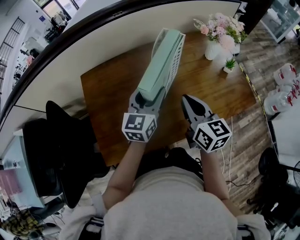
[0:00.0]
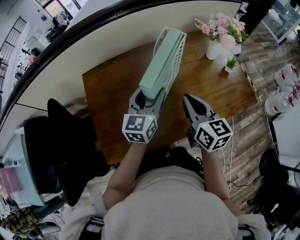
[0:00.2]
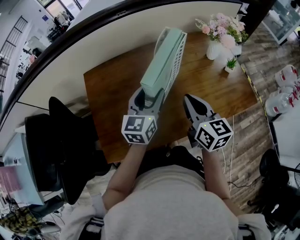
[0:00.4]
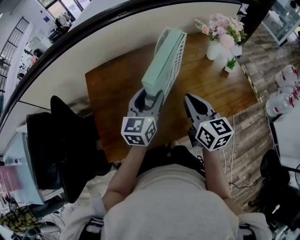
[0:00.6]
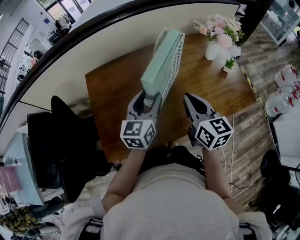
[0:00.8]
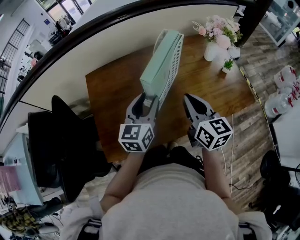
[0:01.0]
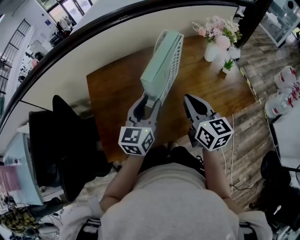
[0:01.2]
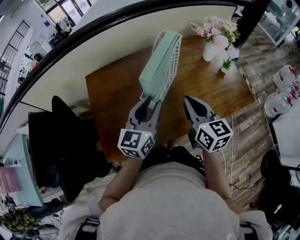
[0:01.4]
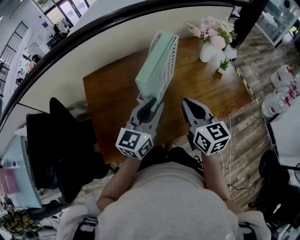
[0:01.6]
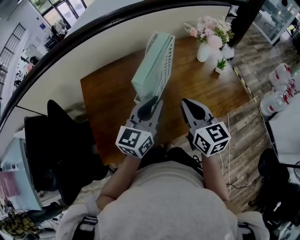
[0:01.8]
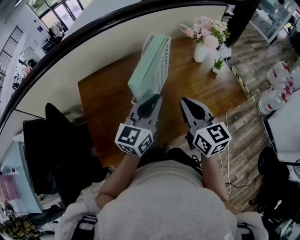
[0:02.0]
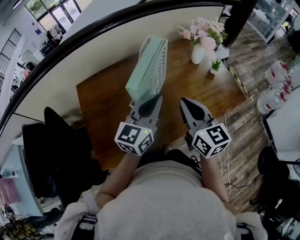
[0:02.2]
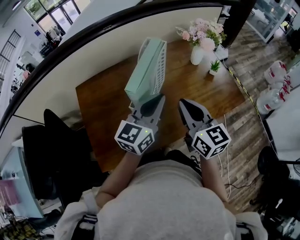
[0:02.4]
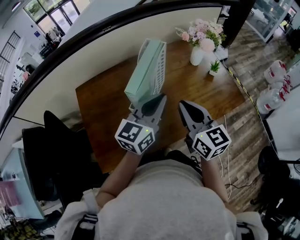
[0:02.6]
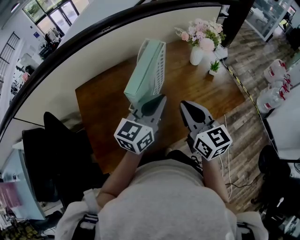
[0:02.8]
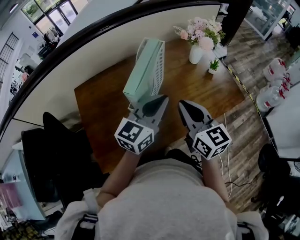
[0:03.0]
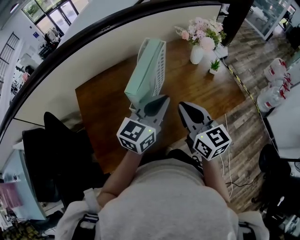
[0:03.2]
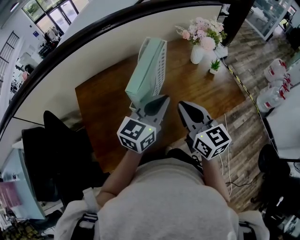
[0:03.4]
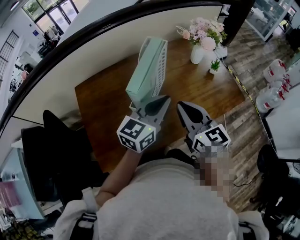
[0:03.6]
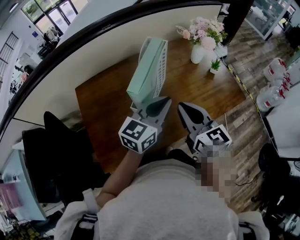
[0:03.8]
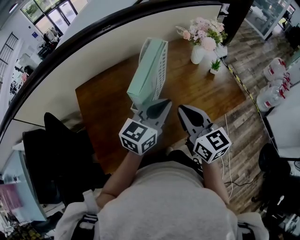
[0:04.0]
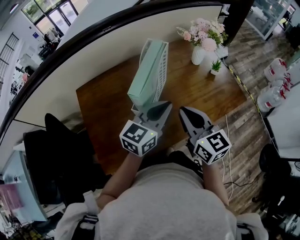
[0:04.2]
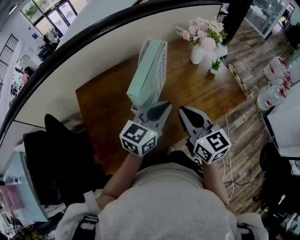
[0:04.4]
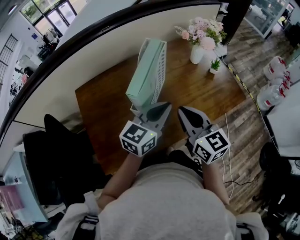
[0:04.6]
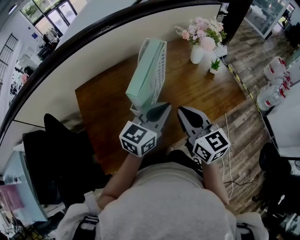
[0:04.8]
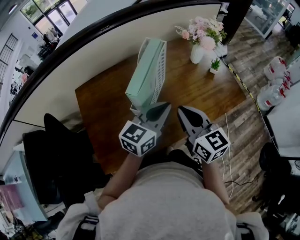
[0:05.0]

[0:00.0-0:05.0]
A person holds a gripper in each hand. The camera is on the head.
0:00.0 to 0:01.6: The right gripper changes place by roughly 5 cm. Meanwhile the left gripper is displaced backward by approximately 10 cm, and closes.
0:01.6 to 0:03.4: The left gripper shifts approximately 5 cm to the right, and closes its fingers.
0:03.4 to 0:05.0: The grippers move only a little.

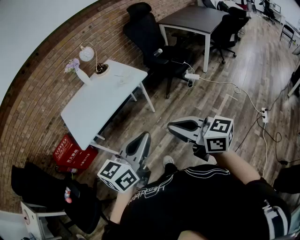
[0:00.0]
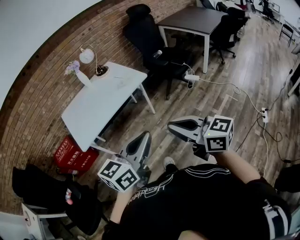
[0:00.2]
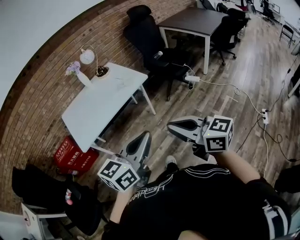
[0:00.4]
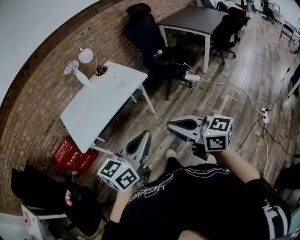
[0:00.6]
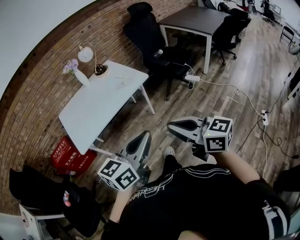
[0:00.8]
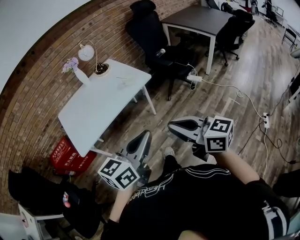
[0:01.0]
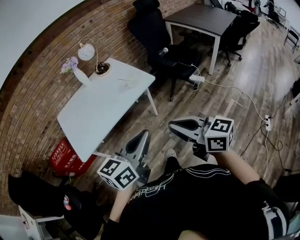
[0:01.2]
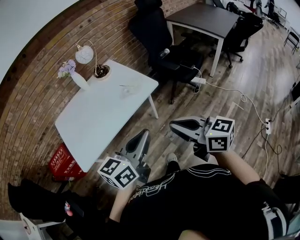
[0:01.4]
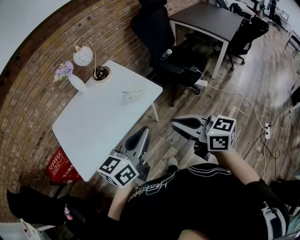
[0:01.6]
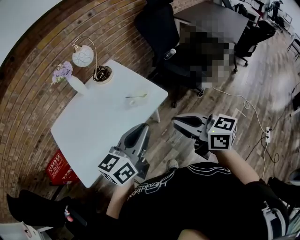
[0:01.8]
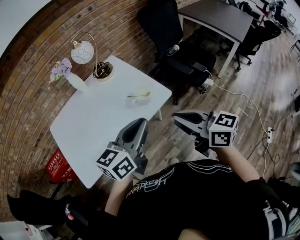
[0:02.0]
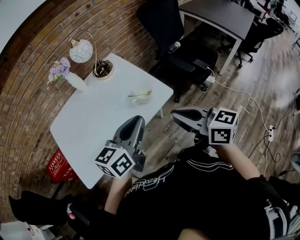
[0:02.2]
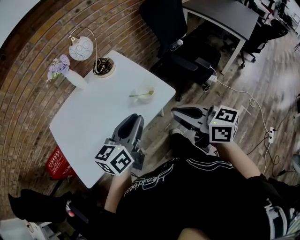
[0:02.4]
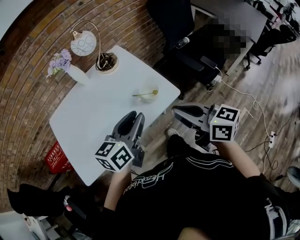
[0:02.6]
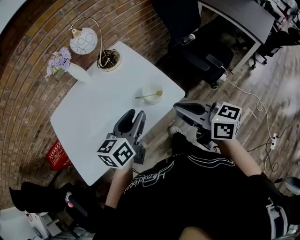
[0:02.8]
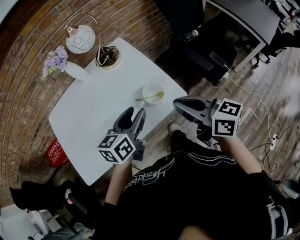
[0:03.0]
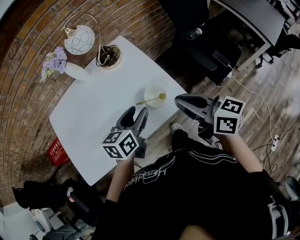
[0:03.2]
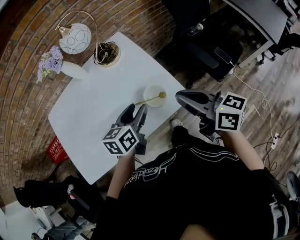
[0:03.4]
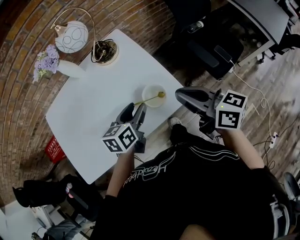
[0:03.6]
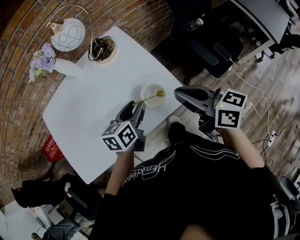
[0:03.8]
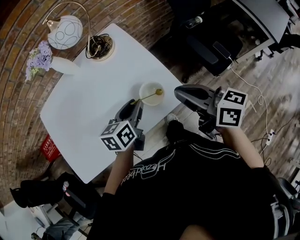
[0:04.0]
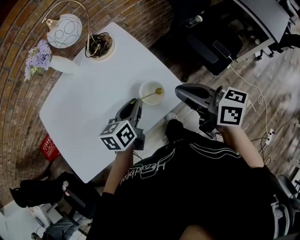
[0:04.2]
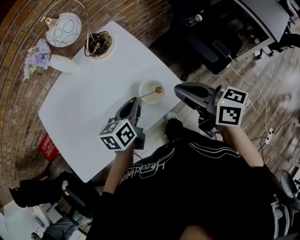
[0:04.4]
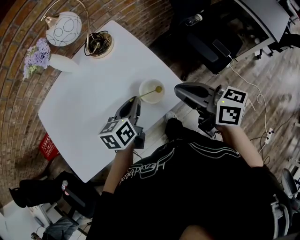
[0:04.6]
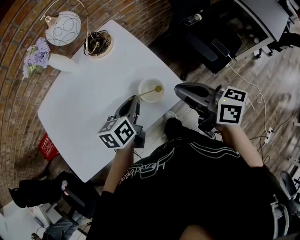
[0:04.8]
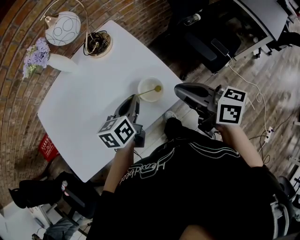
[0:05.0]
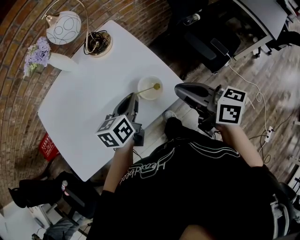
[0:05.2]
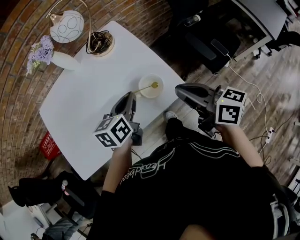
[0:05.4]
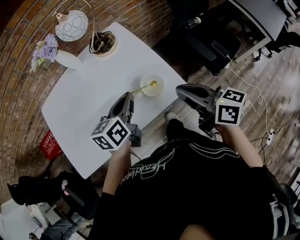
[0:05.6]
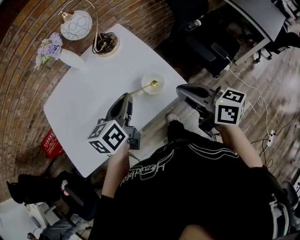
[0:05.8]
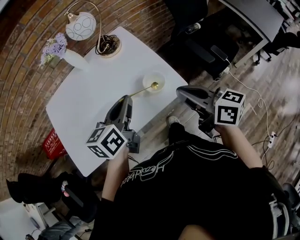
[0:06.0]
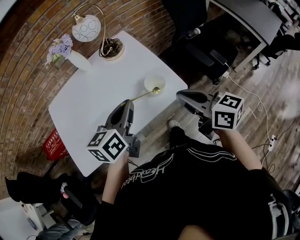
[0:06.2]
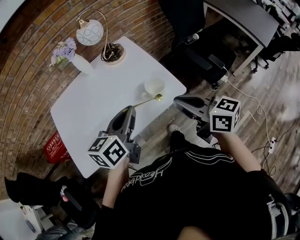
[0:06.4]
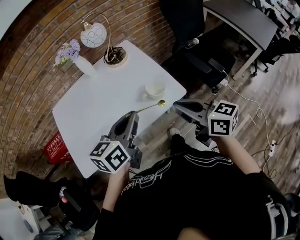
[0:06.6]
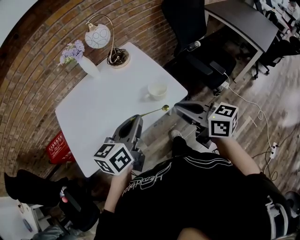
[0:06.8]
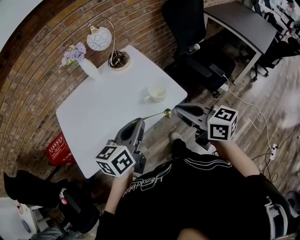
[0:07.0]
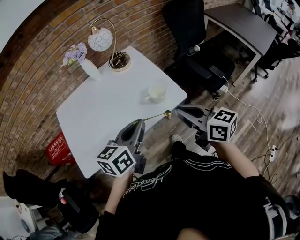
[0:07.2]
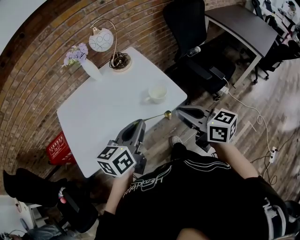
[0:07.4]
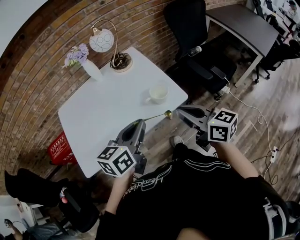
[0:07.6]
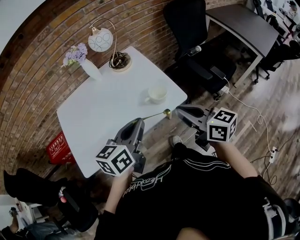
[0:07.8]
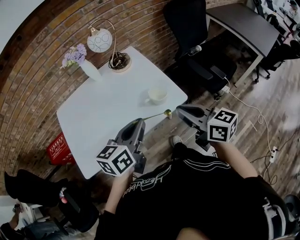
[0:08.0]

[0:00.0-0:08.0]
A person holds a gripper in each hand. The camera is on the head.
0:00.0 to 0:01.6: The two grippers go approximately 30 cm forward.
0:01.6 to 0:03.2: The left gripper travels forward and downward by approximately 35 cm, turns by roughly 30 degrees, and opens up; the right gripper goes some 30 cm forward.
0:03.2 to 0:04.8: The right gripper ends up some 5 cm from where it was. Meanwhile the left gripper travels downward by about 5 cm, and closes its fingers.
0:04.8 to 0:06.4: The left gripper shifts about 20 cm upward and backward, while the right gripper shifts some 10 cm backward.

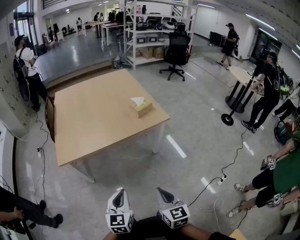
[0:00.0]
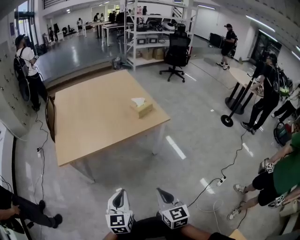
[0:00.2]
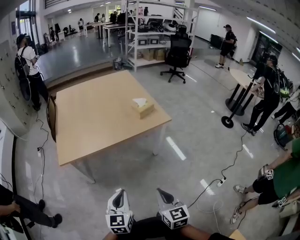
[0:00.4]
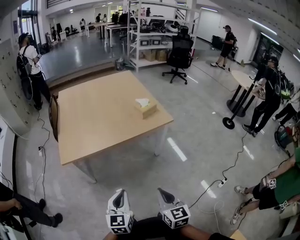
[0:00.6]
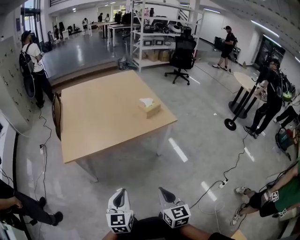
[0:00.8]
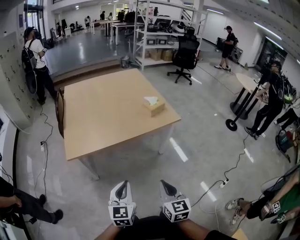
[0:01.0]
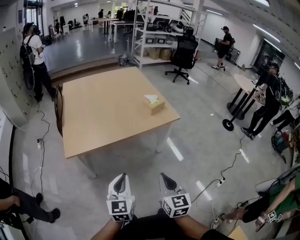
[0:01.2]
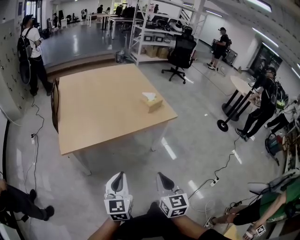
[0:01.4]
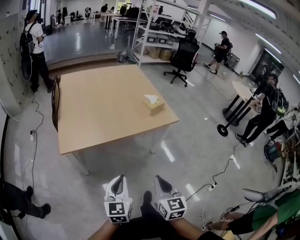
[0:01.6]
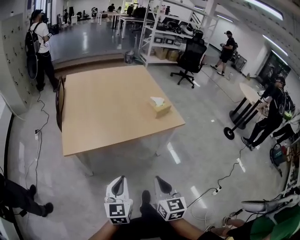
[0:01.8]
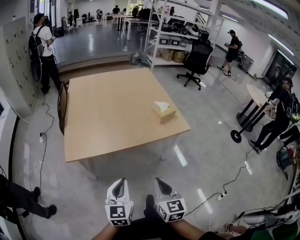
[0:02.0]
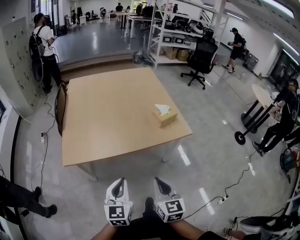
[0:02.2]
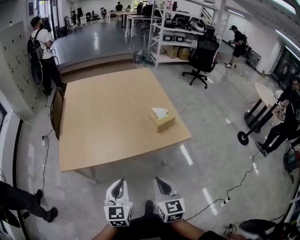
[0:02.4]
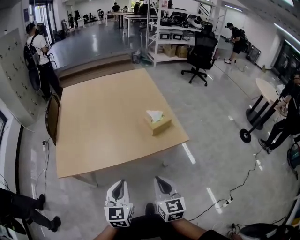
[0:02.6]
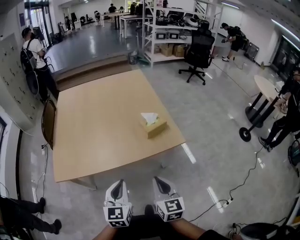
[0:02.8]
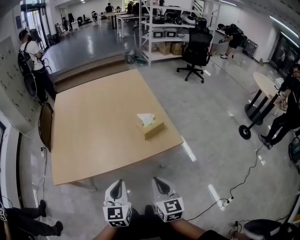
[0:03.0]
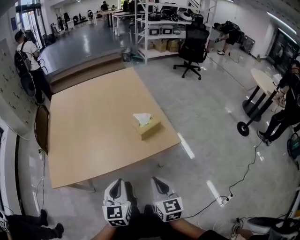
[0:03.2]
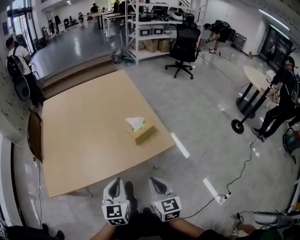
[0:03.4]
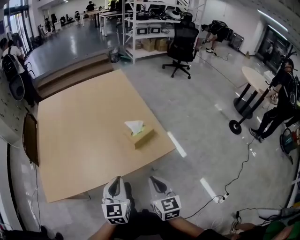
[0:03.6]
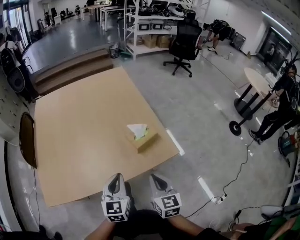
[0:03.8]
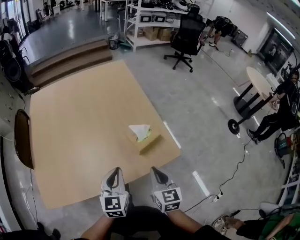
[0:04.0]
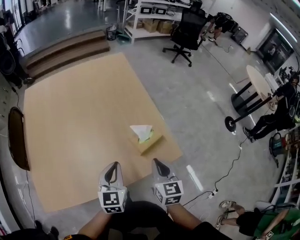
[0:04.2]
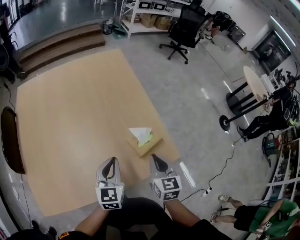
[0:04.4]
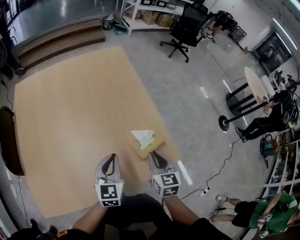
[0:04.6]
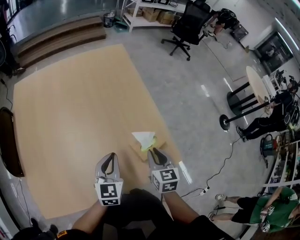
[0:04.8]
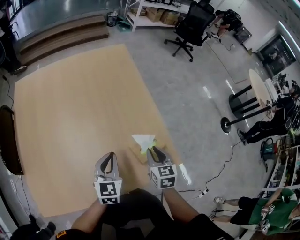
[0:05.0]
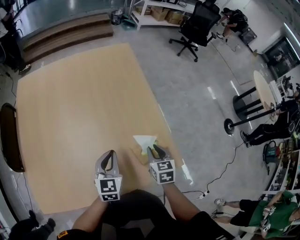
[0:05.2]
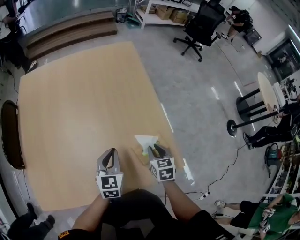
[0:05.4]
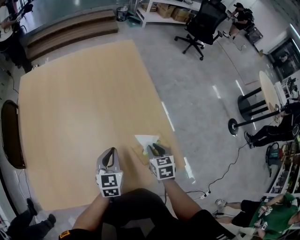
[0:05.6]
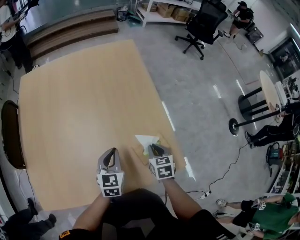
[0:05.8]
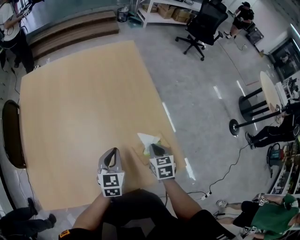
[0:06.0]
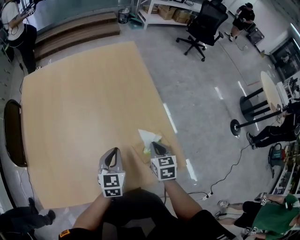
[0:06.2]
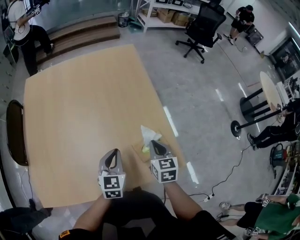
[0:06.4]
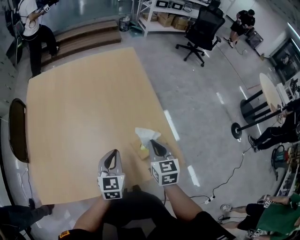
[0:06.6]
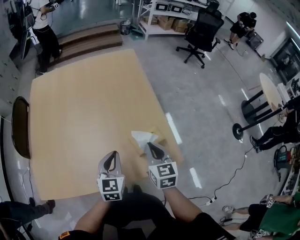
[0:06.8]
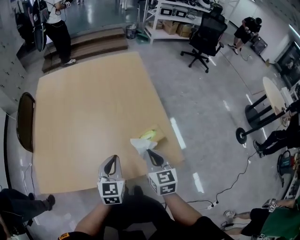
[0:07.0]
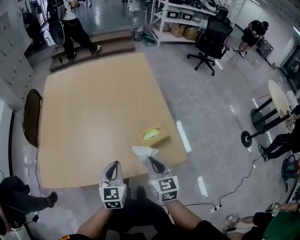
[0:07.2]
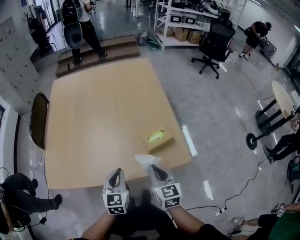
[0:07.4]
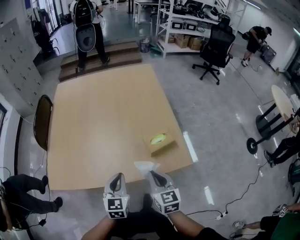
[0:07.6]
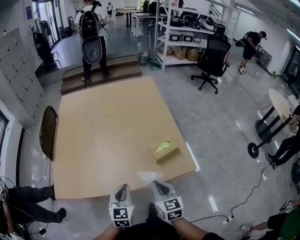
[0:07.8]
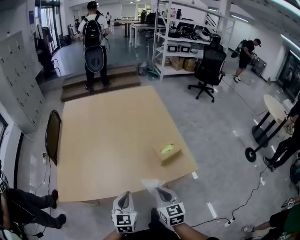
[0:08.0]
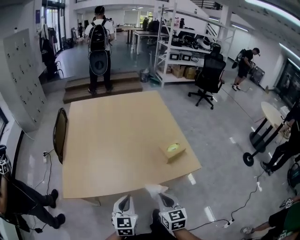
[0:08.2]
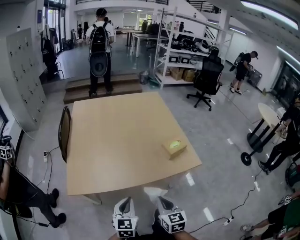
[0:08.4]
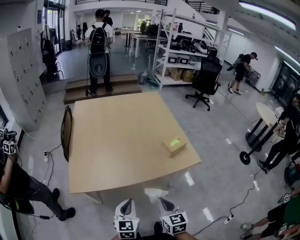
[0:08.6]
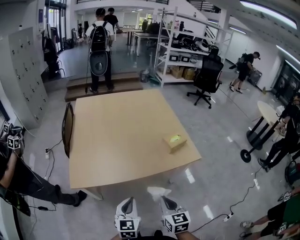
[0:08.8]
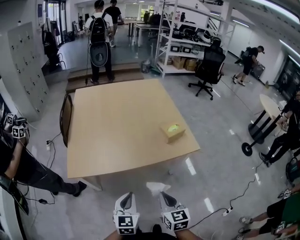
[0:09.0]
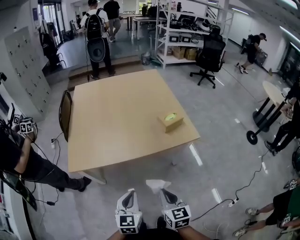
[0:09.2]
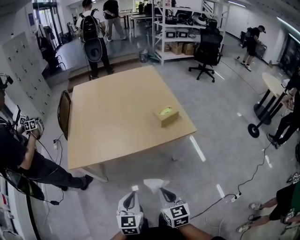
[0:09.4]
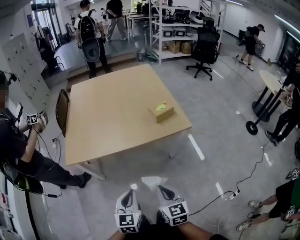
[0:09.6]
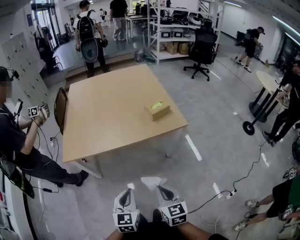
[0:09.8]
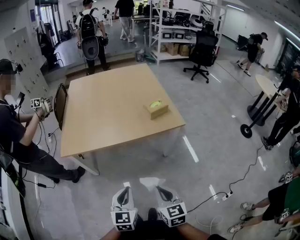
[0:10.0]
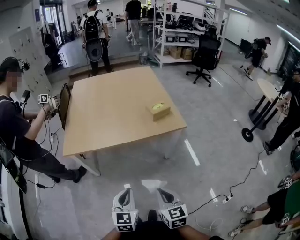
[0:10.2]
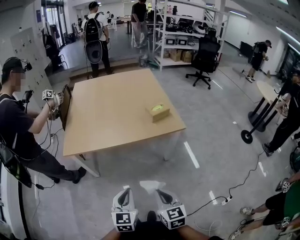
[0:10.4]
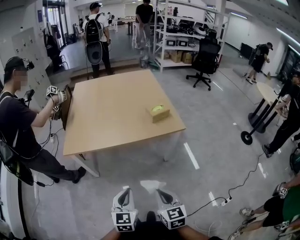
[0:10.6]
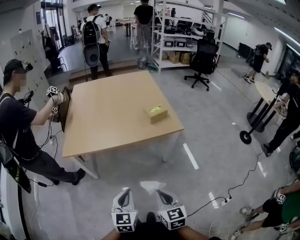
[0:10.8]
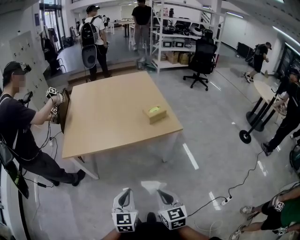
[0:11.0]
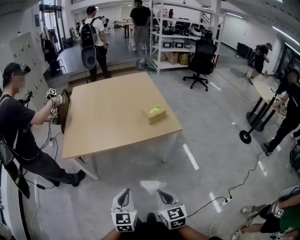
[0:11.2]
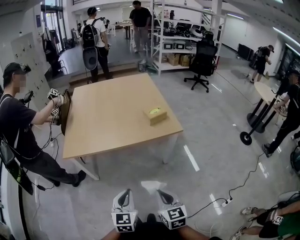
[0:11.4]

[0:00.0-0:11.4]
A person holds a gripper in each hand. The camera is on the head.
0:00.0 to 0:01.4: The grippers both shift to the left by approximately 5 cm.
0:01.4 to 0:02.8: Both grippers move forward and to the right, roughly 20 cm.
0:02.8 to 0:04.2: Both grippers travel together forward, roughly 25 cm.
0:04.2 to 0:05.6: The two grippers go about 15 cm forward and downward. The right gripper swivels about 20 degrees.
0:05.6 to 0:07.2: The right gripper is displaced backward and upward by about 15 cm, and swivels approximately 20 degrees. The left gripper shifts about 15 cm backward.
0:07.2 to 0:08.6: Both grippers move backward and to the left, approximately 25 cm.
0:08.6 to 0:10.0: The two grippers go some 20 cm backward and to the right.
0:10.0 to 0:11.4: The grippers stay close to where they were, moving slightly.
